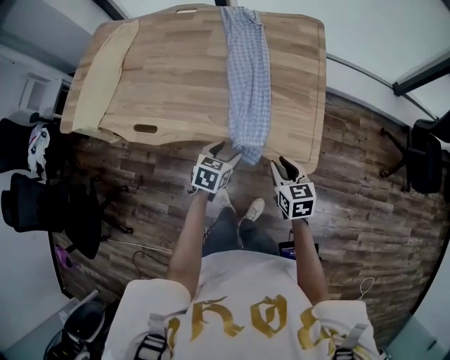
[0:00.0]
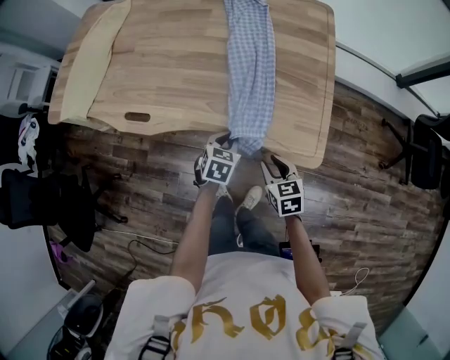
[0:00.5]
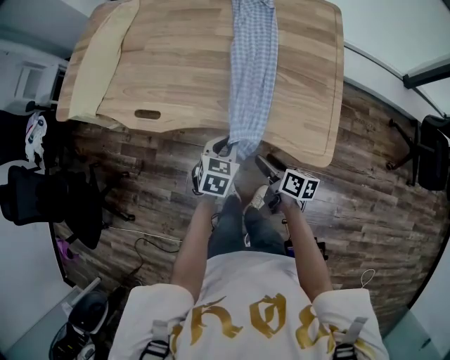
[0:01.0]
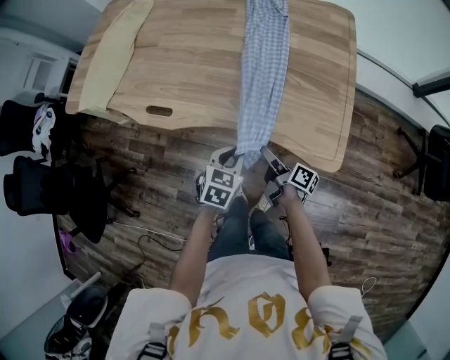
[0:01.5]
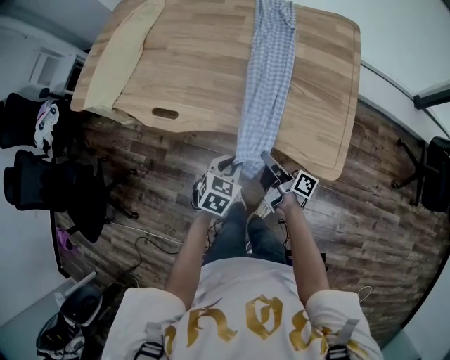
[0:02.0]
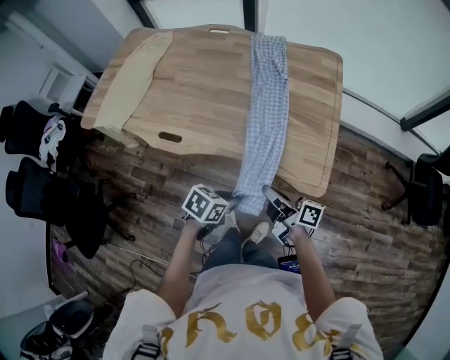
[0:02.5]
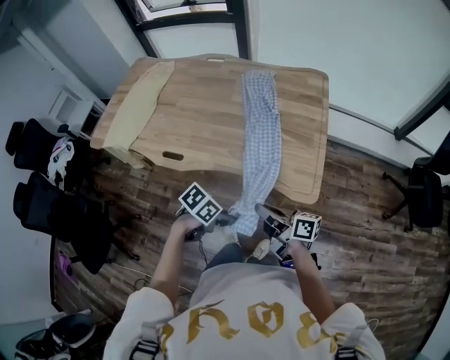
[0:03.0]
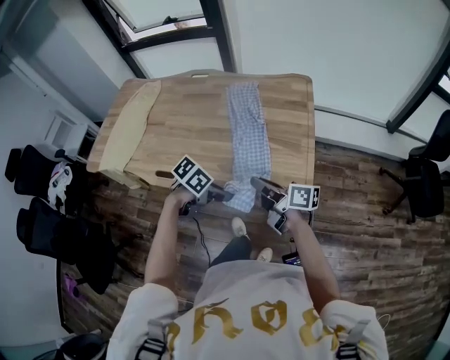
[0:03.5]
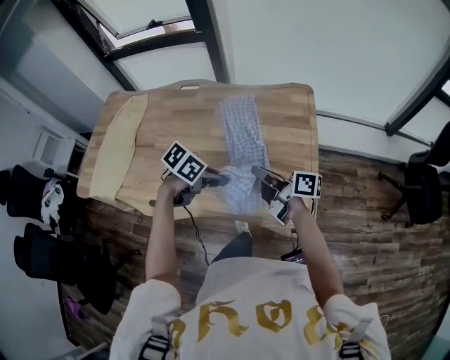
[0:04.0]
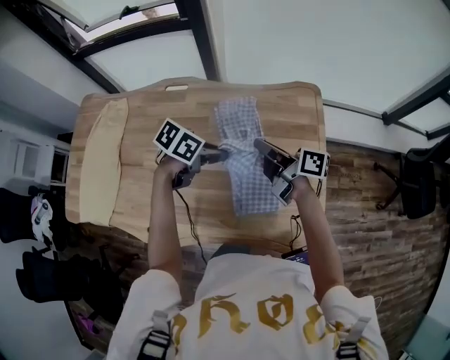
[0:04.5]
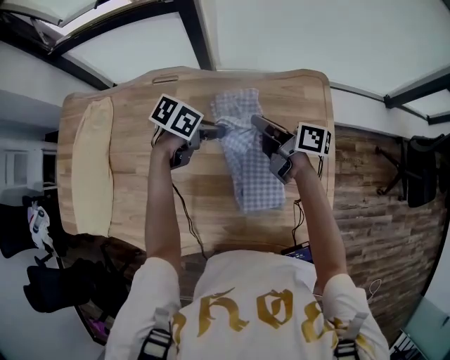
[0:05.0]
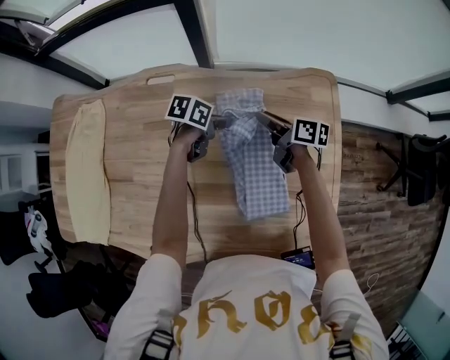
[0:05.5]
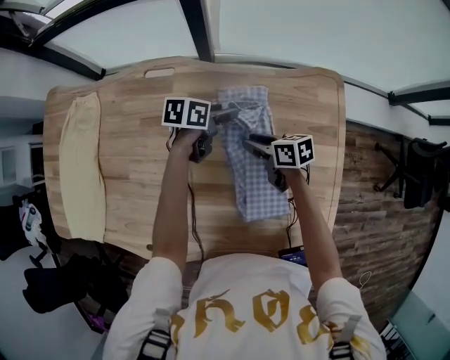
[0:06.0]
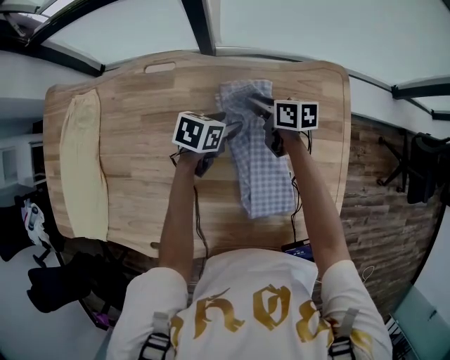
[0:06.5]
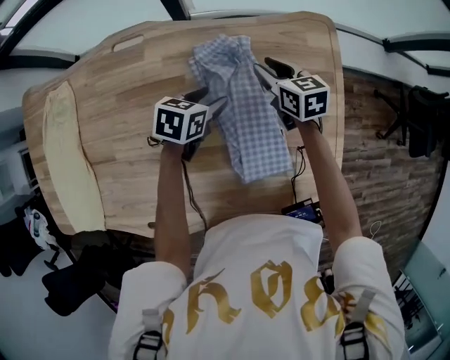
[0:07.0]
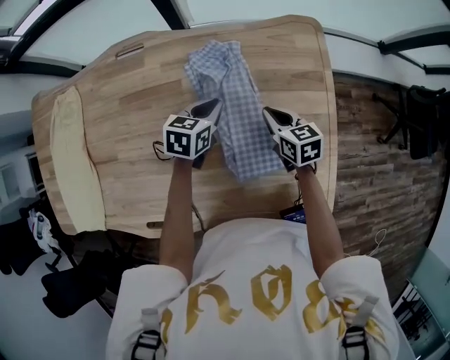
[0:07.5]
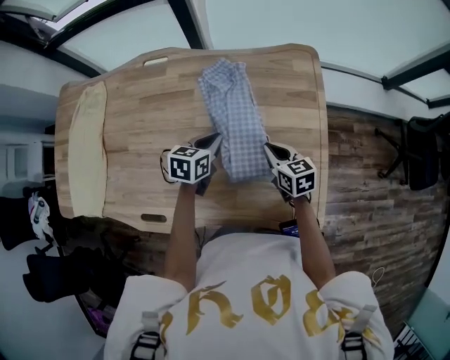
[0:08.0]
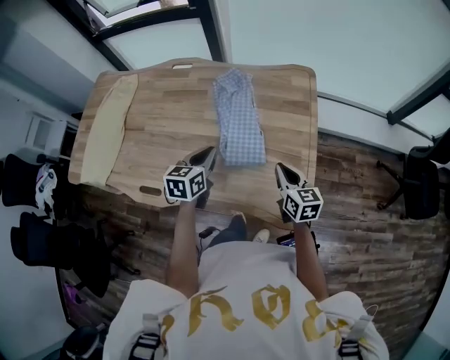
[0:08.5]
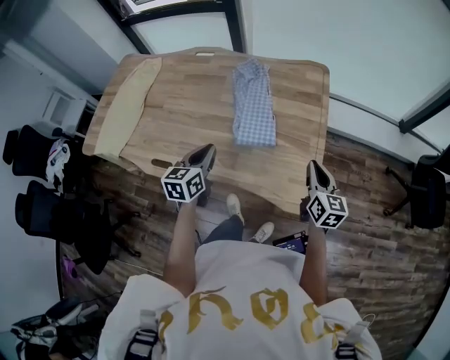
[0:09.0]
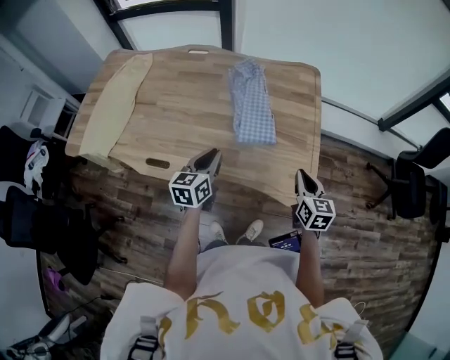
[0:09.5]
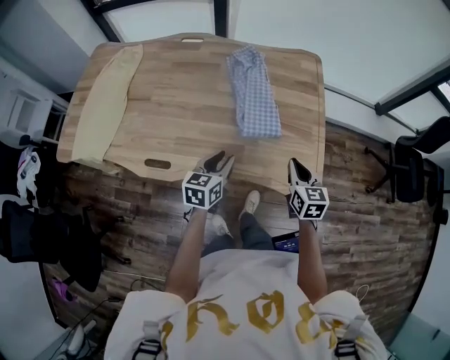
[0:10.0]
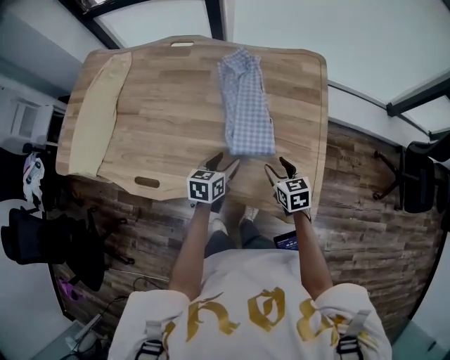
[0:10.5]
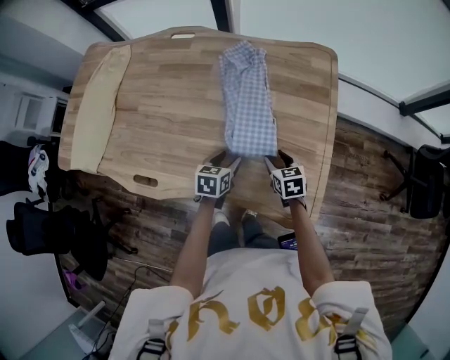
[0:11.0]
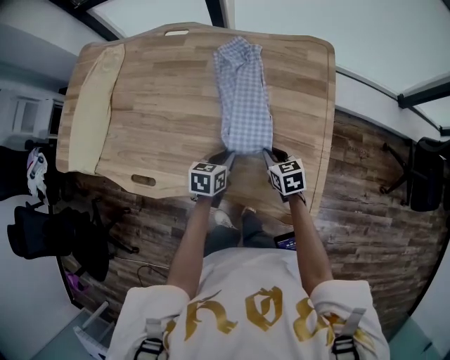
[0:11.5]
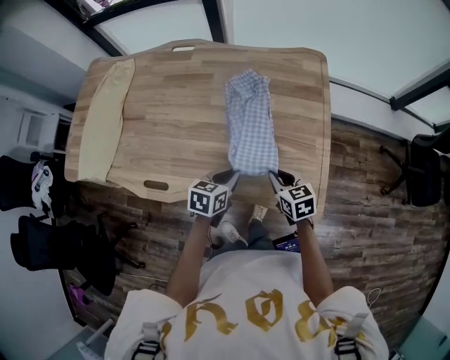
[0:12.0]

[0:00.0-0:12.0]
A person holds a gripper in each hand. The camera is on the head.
0:00.0 to 0:02.0: The left gripper travels to the left by roughly 5 cm, and closes up. The right gripper shifts roughly 15 cm to the left and downward, twists about 70 degrees clockwise, seen from behind, and opens, then closes again.
0:02.0 to 0:04.0: The right gripper is displaced upward by some 20 cm, and turns by about 20 degrees. Meanwhile the left gripper moves approximately 25 cm, and swivels some 40 degrees.
0:04.0 to 0:06.0: The right gripper ends up approximately 40 cm from where it was, angles its fingers downward, by roughly 30 degrees, and opens its fingers; the left gripper changes place by some 50 cm, changes its angle by approximately 30 degrees, and opens.
0:06.0 to 0:08.0: The right gripper changes place by roughly 20 cm, rotates about 30 degrees, and closes its fingers; the left gripper changes place by roughly 20 cm, turns by roughly 20 degrees, and closes its fingers.
0:08.0 to 0:10.0: Both grippers travel together backward, roughly 25 cm.
0:10.0 to 0:12.0: The left gripper moves to the right, about 5 cm, reaches roughly 15 cm downward, then returns, and opens and closes again. Meanwhile the right gripper shifts roughly 10 cm downward and forward, changes its angle by about 20 degrees, and opens and closes again.

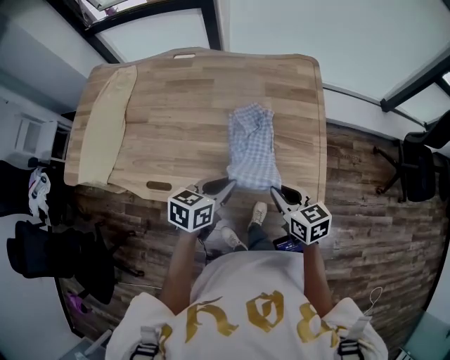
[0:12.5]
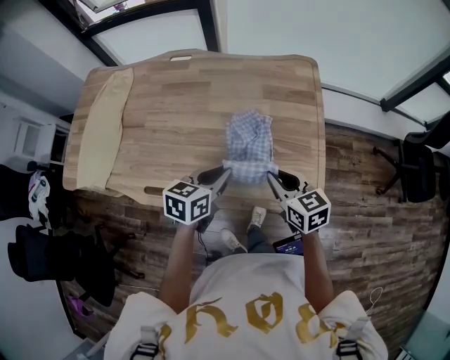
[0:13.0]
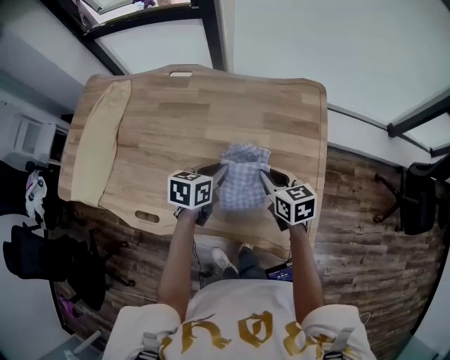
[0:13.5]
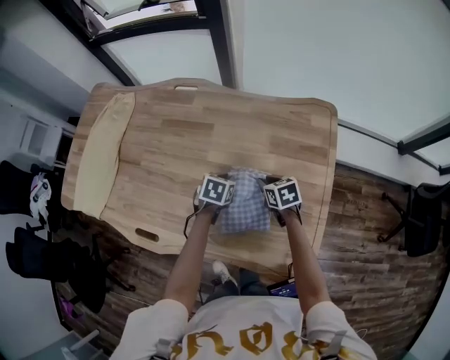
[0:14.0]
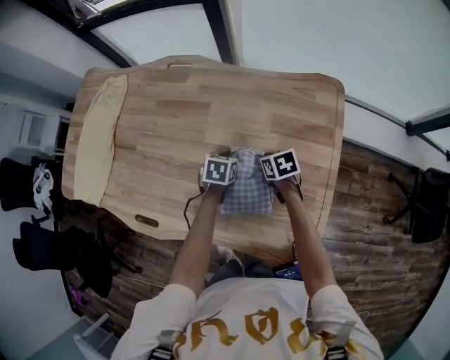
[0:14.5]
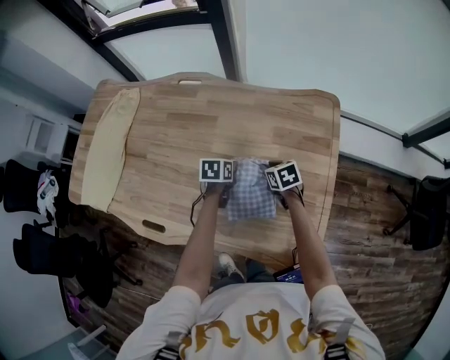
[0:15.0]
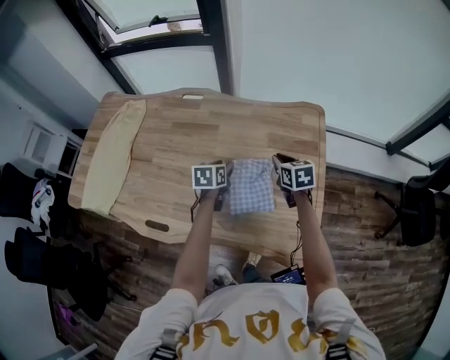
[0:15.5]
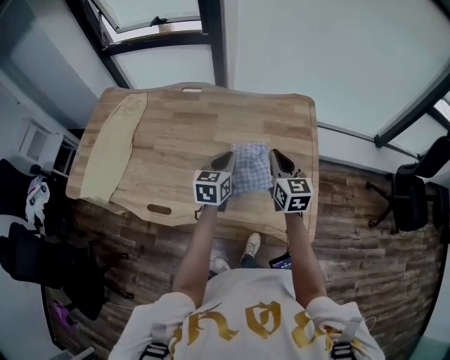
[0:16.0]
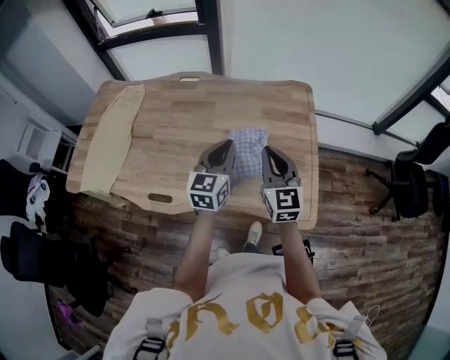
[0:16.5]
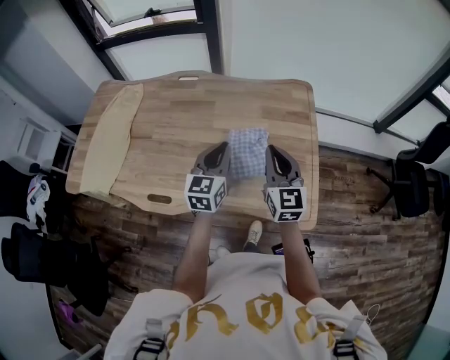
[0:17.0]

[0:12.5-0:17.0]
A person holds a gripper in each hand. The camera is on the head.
0:12.5 to 0:14.5: Both grippers move forward and downward, about 35 cm. The left gripper rotates about 30 degrees; the right gripper swivels approximately 30 degrees.
0:14.5 to 0:17.0: Both grippers travel together upward and backward, roughly 35 cm. The right gripper points its fingers some 50 degrees further upward. Meanwhile the left gripper tips its fingers upward by some 50 degrees, and opens and closes again.

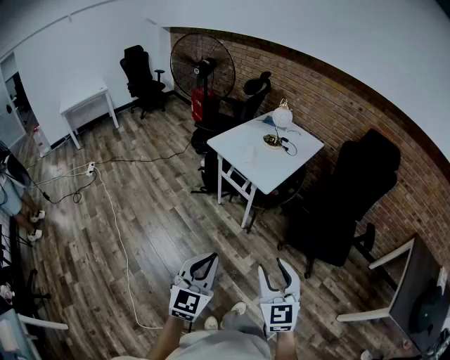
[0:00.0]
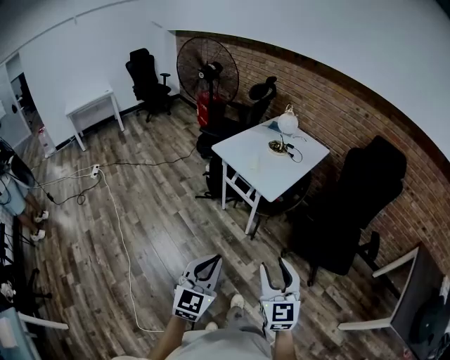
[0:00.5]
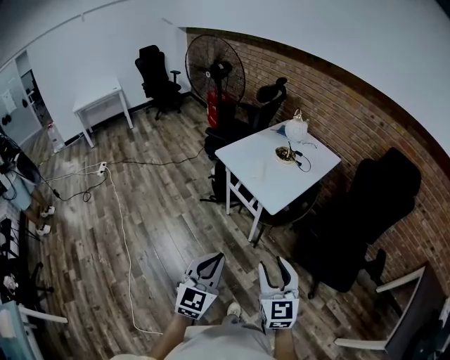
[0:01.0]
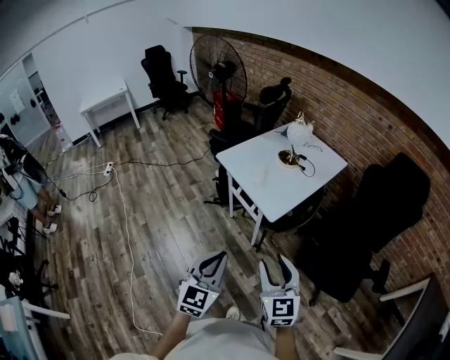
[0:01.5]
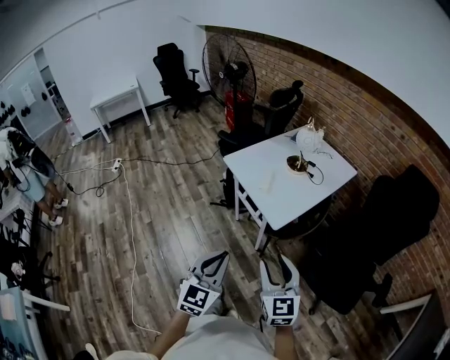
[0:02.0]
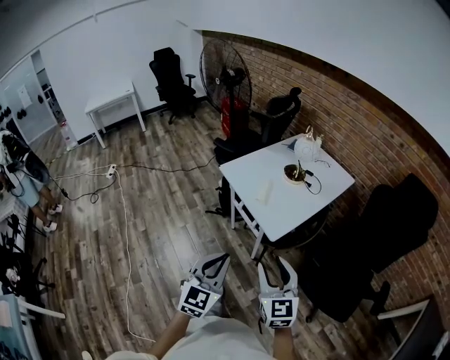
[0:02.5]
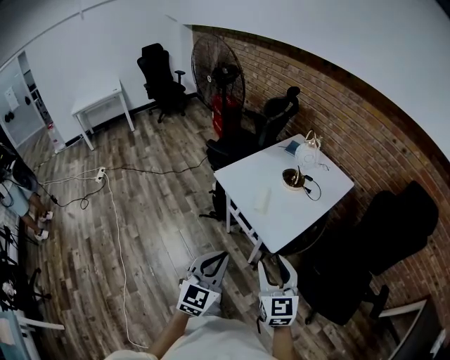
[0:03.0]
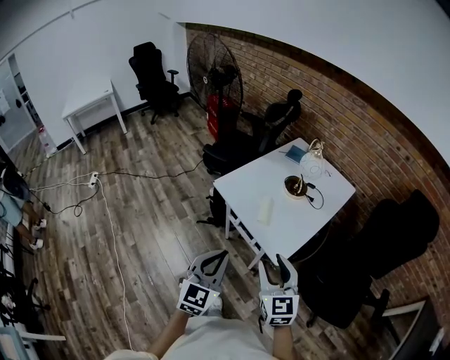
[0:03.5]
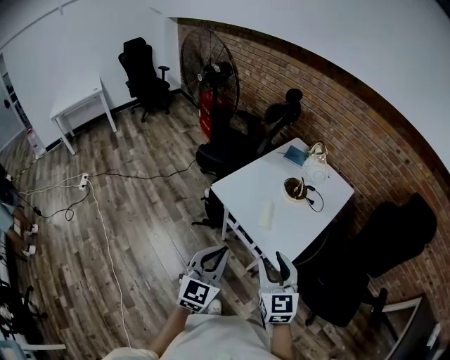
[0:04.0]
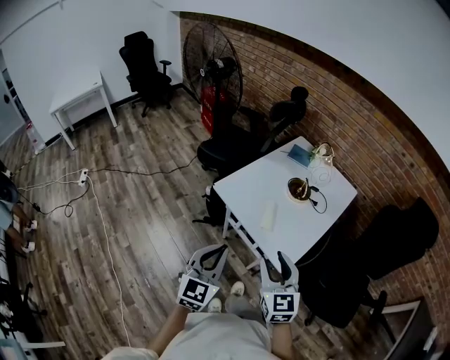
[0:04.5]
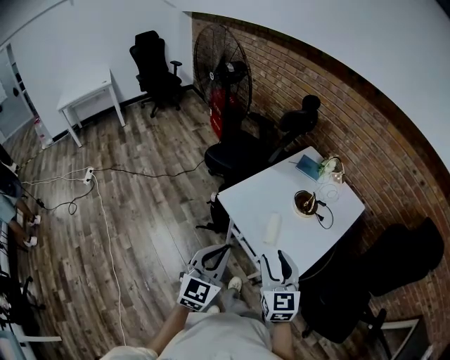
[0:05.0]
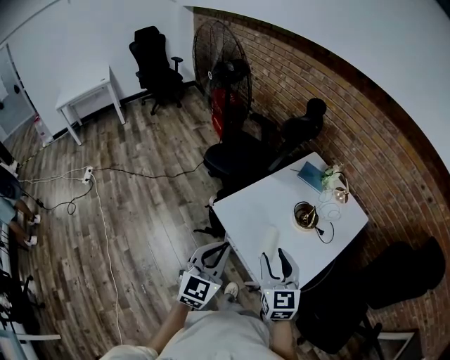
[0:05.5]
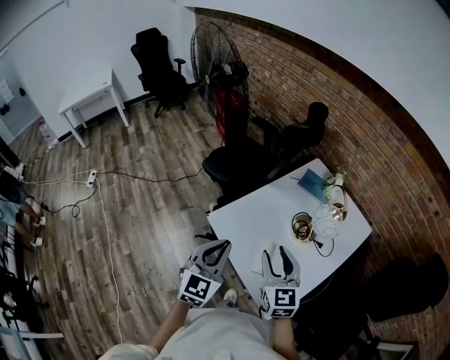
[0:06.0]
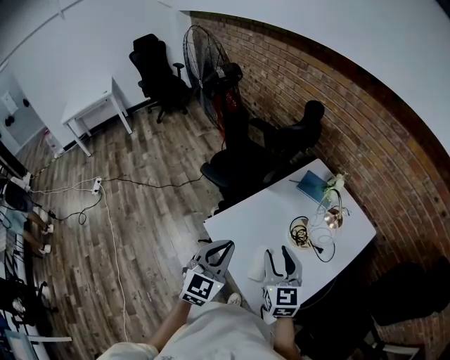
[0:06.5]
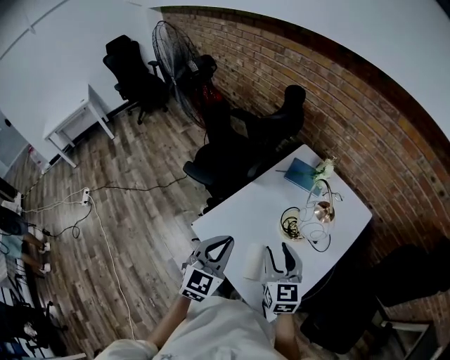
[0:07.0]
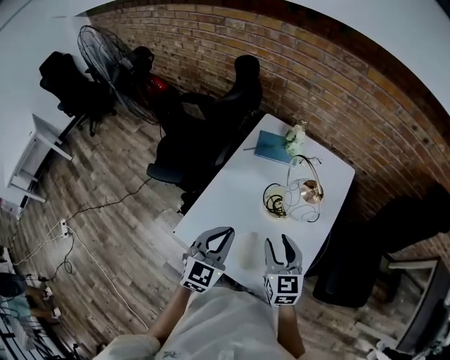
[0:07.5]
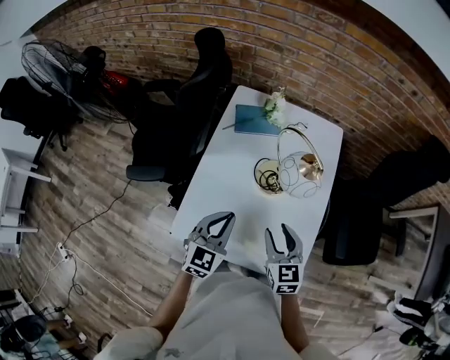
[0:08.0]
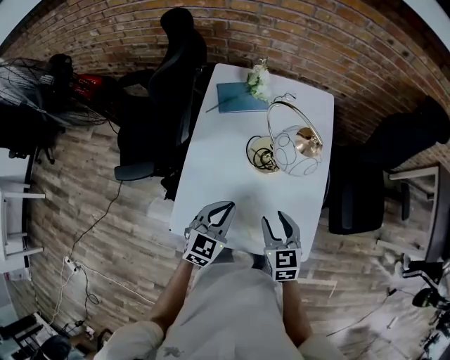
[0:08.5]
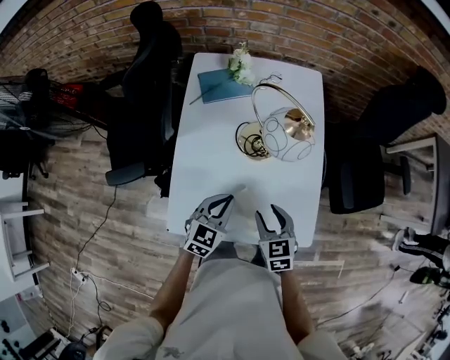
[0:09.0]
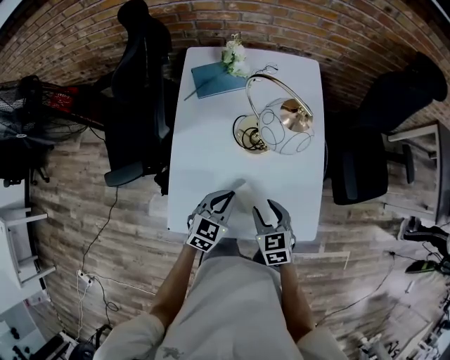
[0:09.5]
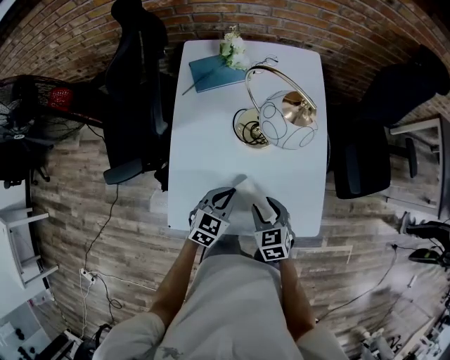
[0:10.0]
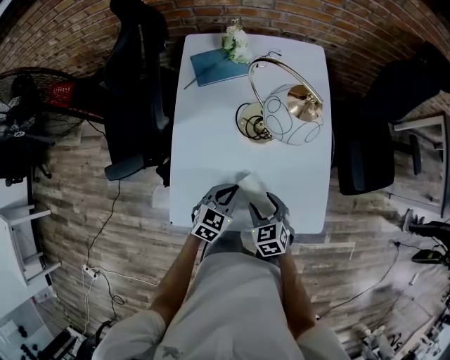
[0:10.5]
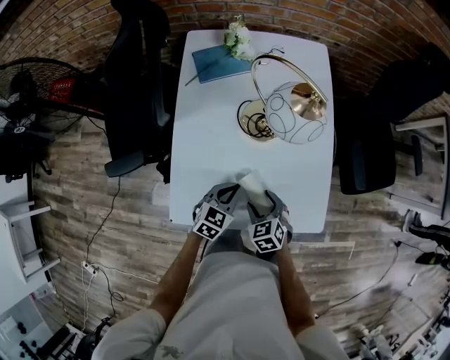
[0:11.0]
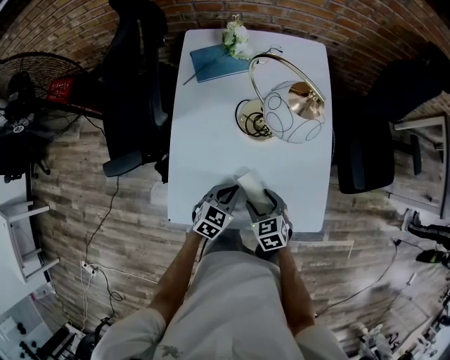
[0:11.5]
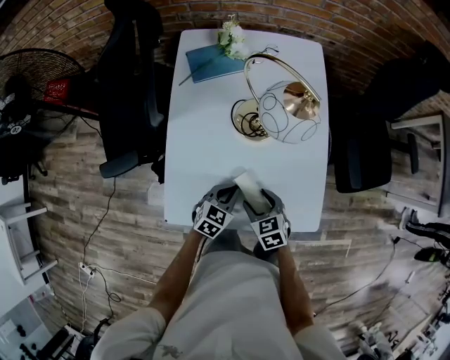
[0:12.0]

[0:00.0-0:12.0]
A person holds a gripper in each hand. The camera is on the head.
0:00.0 to 0:02.0: The right gripper shifts roughly 25 cm forward. The left gripper shifts roughly 25 cm forward and to the right.
0:02.0 to 0:04.0: The two grippers go about 30 cm forward and to the left.
0:04.0 to 0:06.0: Both grippers move forward, about 25 cm.
0:06.0 to 0:08.0: The right gripper is displaced downward by approximately 15 cm, and rotates some 40 degrees. Meanwhile the left gripper shifts by about 20 cm, and swivels approximately 40 degrees.
0:08.0 to 0:10.0: The grippers both shift downward by roughly 15 cm. The left gripper turns by roughly 30 degrees.
0:10.0 to 0:12.0: The left gripper shifts approximately 5 cm downward.
